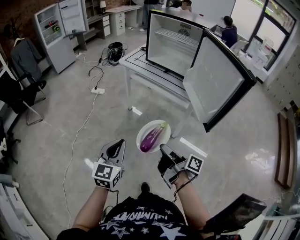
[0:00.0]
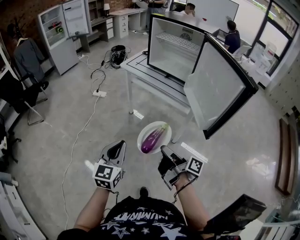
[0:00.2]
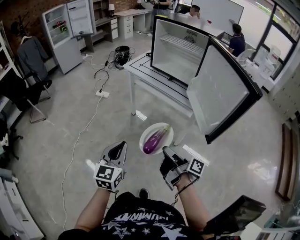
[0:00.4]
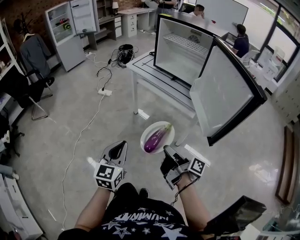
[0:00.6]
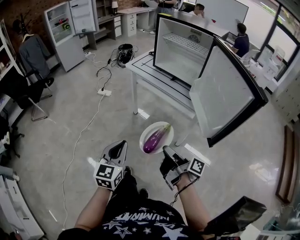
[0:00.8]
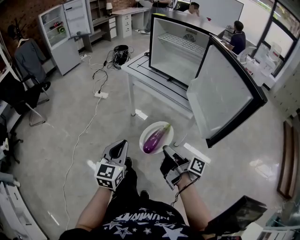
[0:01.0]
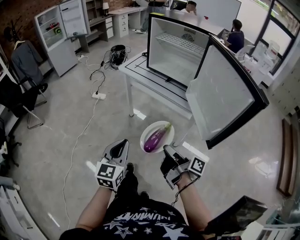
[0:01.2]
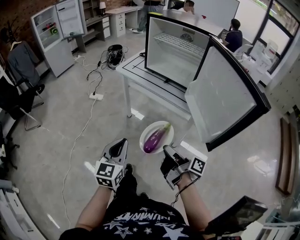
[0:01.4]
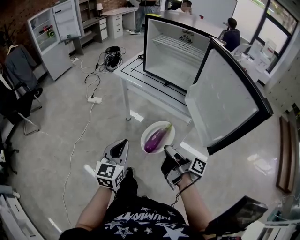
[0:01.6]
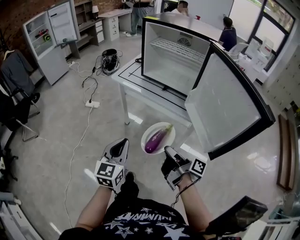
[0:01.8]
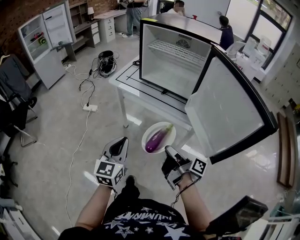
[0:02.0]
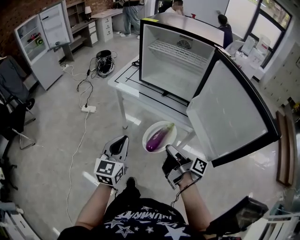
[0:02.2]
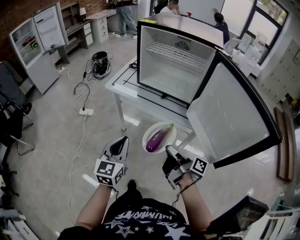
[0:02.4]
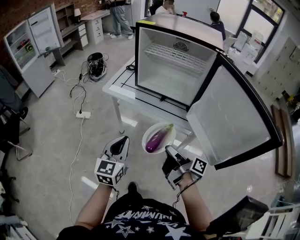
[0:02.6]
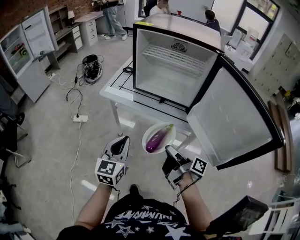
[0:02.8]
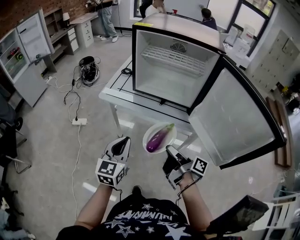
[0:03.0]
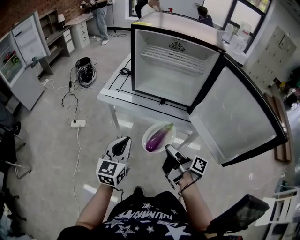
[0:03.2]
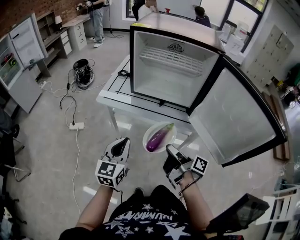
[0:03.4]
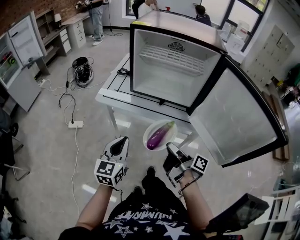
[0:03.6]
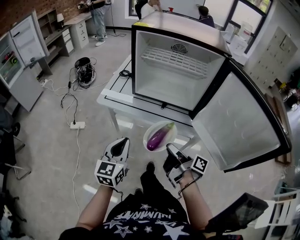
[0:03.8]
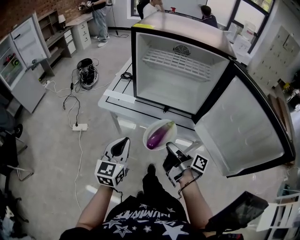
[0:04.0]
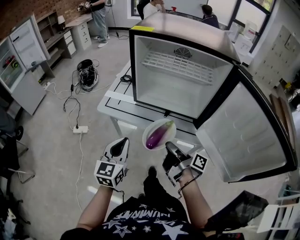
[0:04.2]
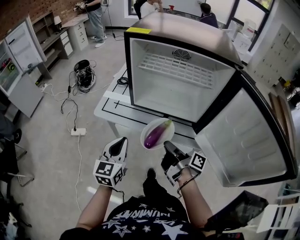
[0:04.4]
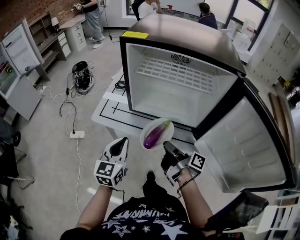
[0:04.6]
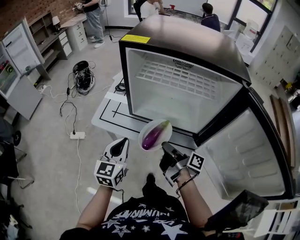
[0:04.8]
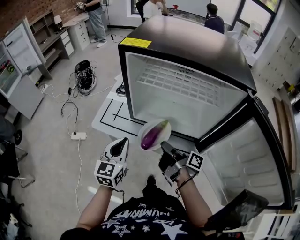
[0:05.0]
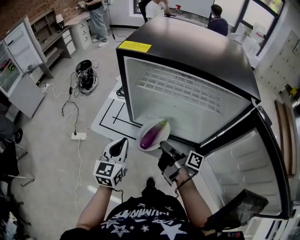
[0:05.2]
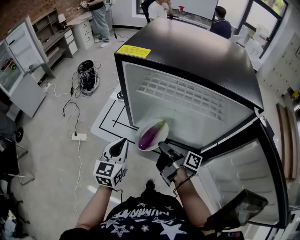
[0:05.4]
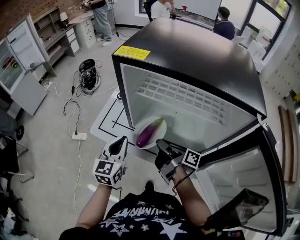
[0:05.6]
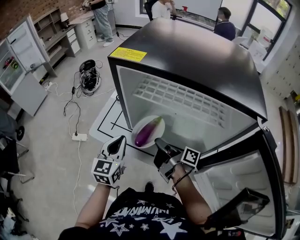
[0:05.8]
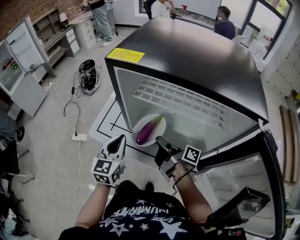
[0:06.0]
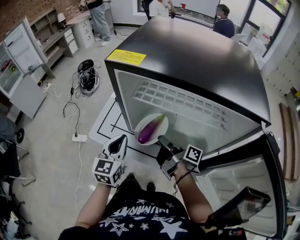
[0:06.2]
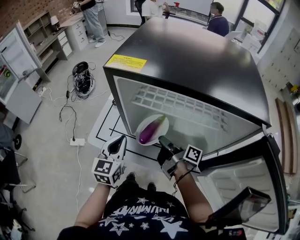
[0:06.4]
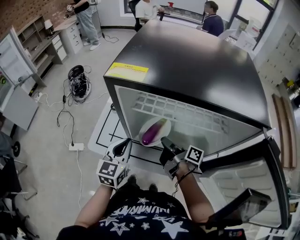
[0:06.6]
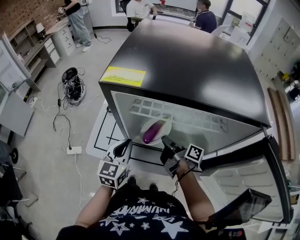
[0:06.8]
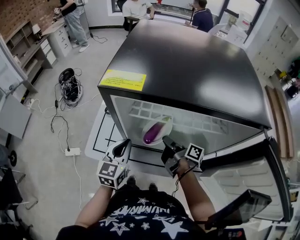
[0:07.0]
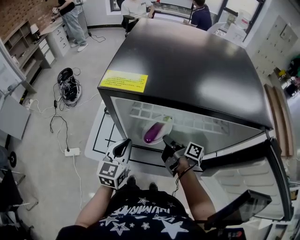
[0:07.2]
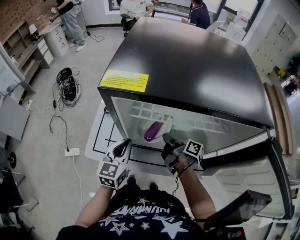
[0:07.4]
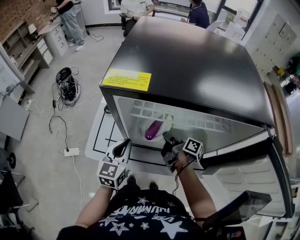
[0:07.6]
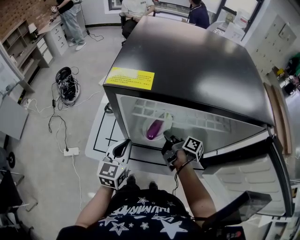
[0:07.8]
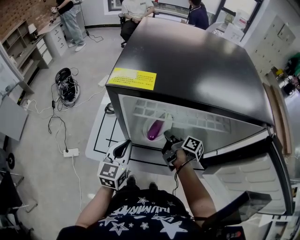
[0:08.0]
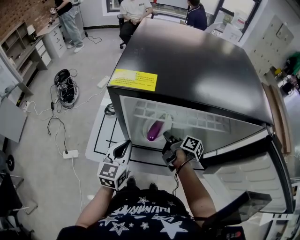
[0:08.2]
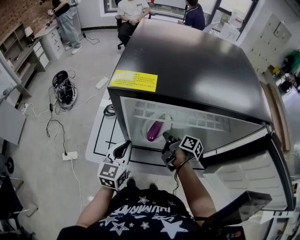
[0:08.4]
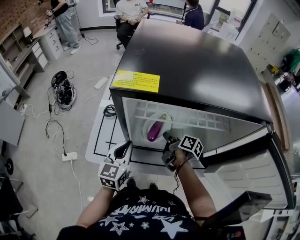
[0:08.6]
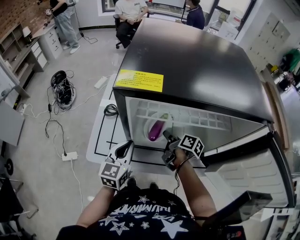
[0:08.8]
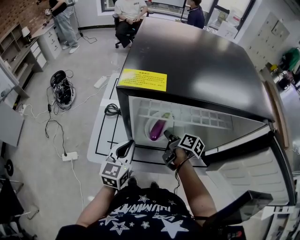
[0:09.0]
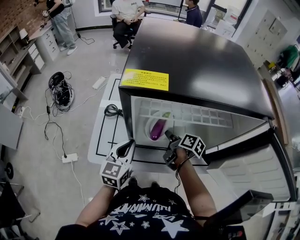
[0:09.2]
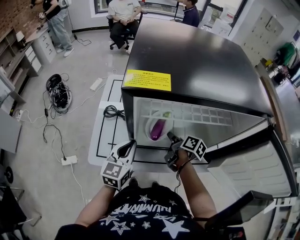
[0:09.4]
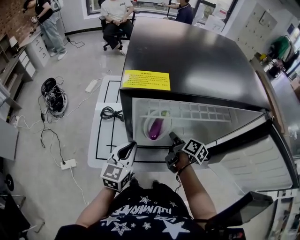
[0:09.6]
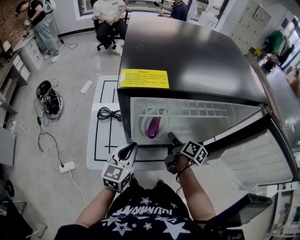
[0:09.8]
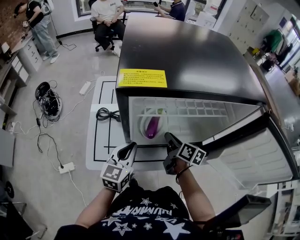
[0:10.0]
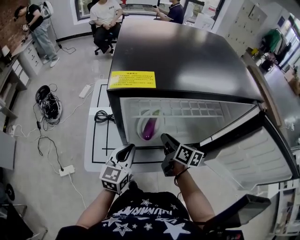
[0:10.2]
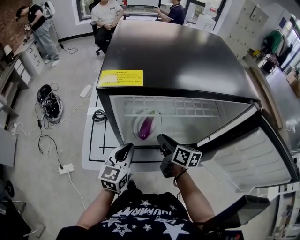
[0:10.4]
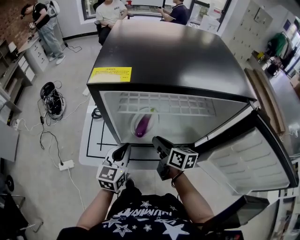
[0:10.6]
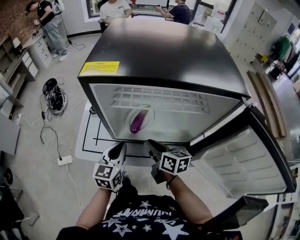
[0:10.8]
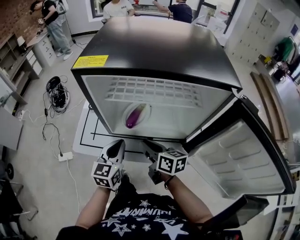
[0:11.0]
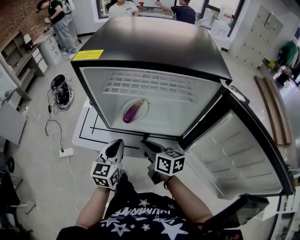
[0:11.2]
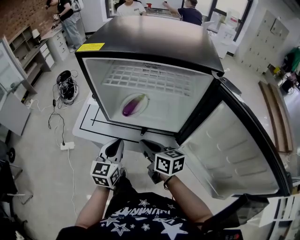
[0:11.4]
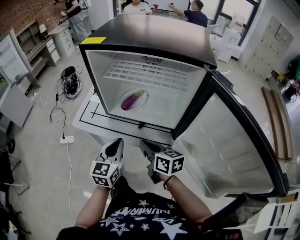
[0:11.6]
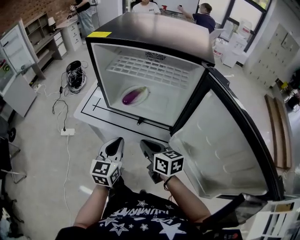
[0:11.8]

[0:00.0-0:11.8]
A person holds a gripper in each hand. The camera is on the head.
0.0 to 1.4 s: The left gripper ends up some 10 cm from where it was.
1.4 to 3.0 s: The left gripper shifts by some 25 cm.
3.0 to 4.4 s: The left gripper shifts by roughly 15 cm.
4.4 to 6.0 s: The left gripper shifts by approximately 20 cm.
6.0 to 7.4 s: The left gripper moves approximately 5 cm.
10.4 to 11.8 s: The left gripper shifts by roughly 20 cm, and turns by roughly 30 degrees.

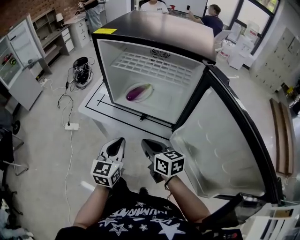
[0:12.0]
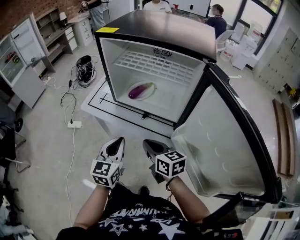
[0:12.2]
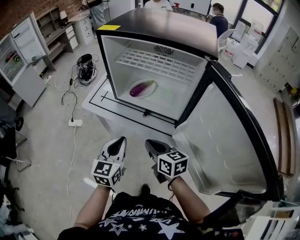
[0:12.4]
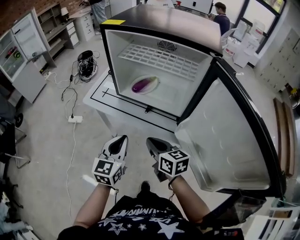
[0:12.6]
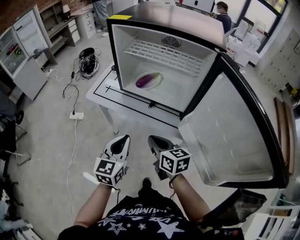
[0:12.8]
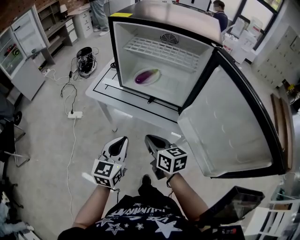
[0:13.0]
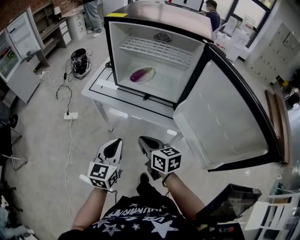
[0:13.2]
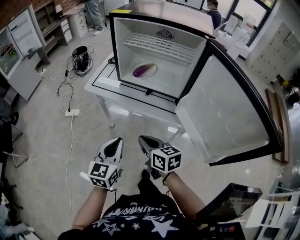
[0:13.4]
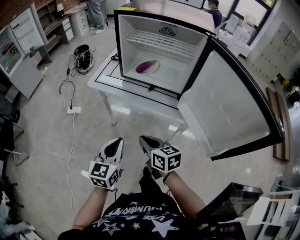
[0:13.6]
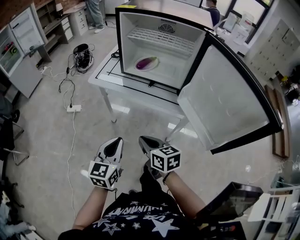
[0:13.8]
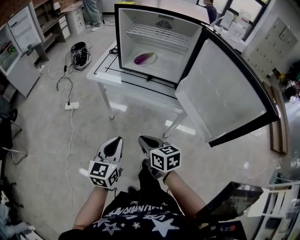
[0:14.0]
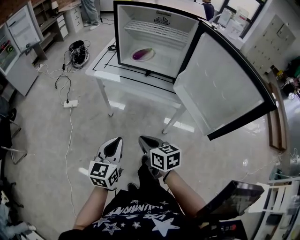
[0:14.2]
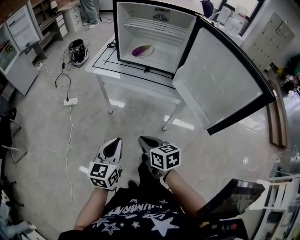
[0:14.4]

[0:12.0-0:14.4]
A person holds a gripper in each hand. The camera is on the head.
12.0 to 13.2 s: The left gripper changes place by approximately 15 cm.
13.2 to 14.4 s: The left gripper shifts by approximately 20 cm.

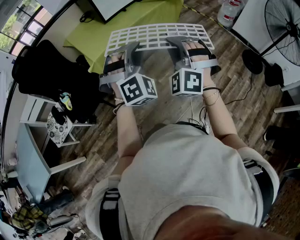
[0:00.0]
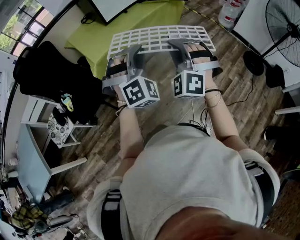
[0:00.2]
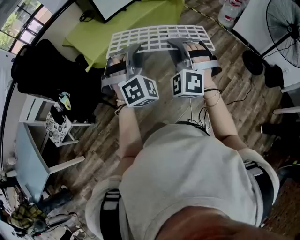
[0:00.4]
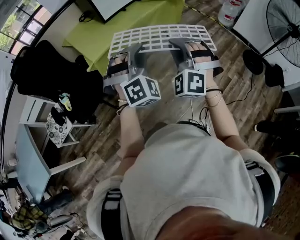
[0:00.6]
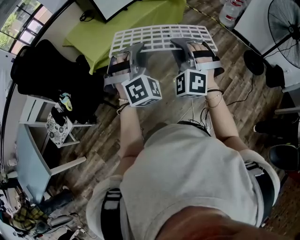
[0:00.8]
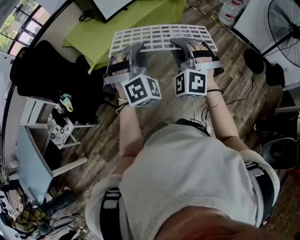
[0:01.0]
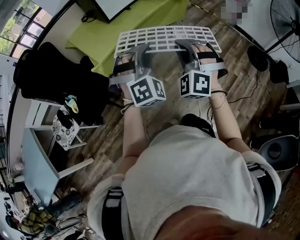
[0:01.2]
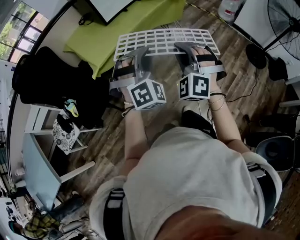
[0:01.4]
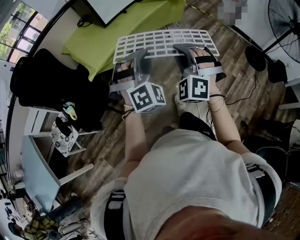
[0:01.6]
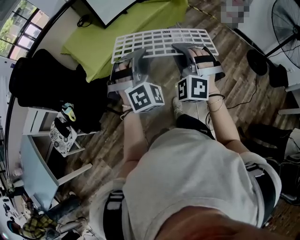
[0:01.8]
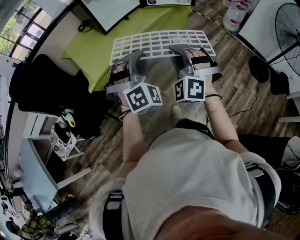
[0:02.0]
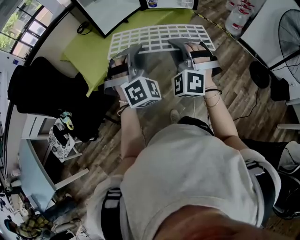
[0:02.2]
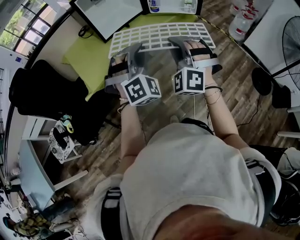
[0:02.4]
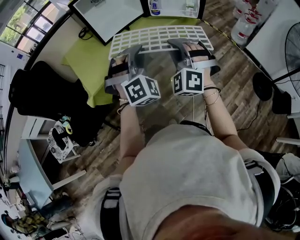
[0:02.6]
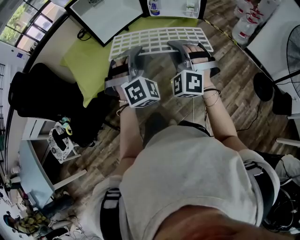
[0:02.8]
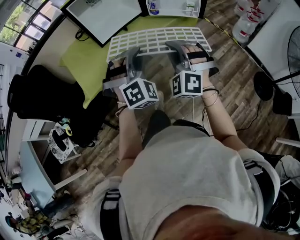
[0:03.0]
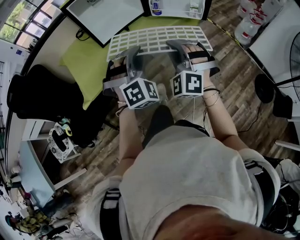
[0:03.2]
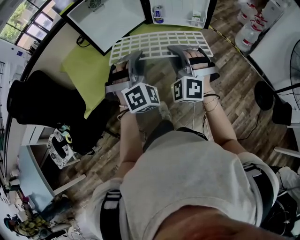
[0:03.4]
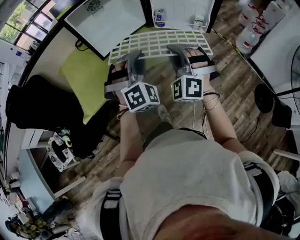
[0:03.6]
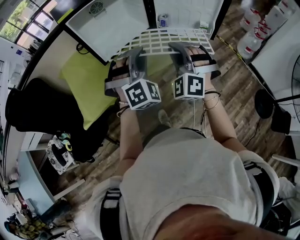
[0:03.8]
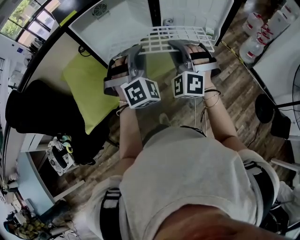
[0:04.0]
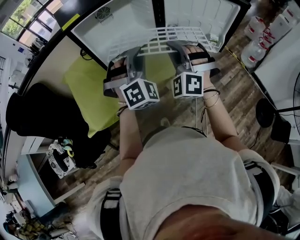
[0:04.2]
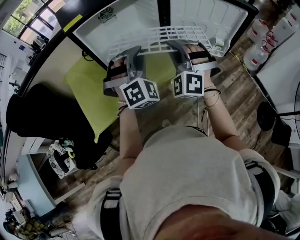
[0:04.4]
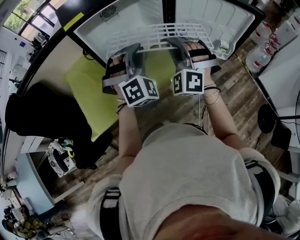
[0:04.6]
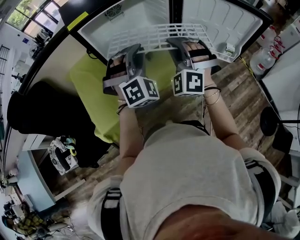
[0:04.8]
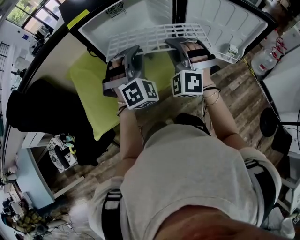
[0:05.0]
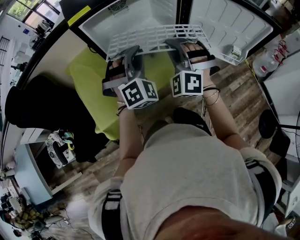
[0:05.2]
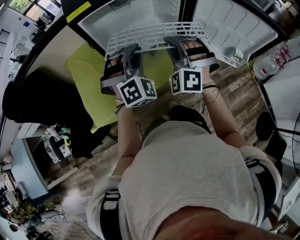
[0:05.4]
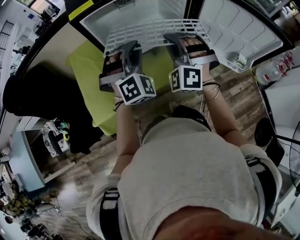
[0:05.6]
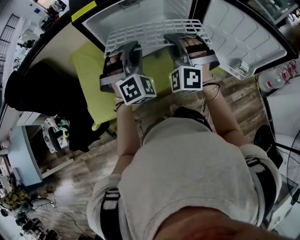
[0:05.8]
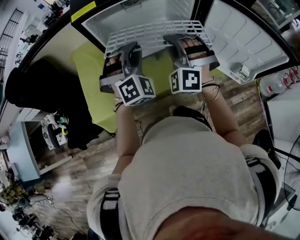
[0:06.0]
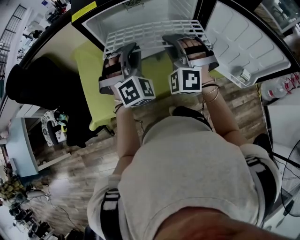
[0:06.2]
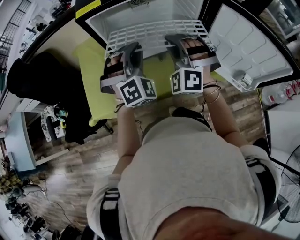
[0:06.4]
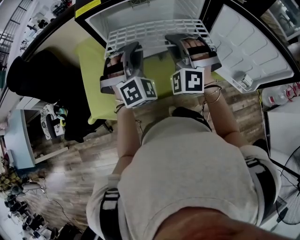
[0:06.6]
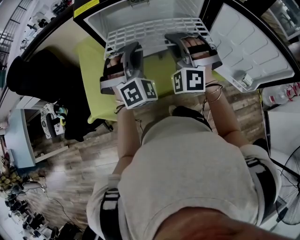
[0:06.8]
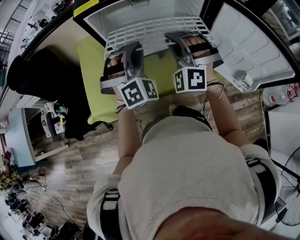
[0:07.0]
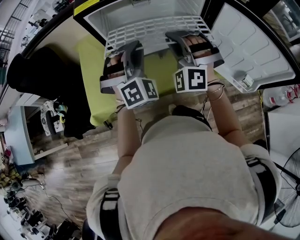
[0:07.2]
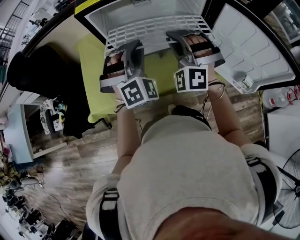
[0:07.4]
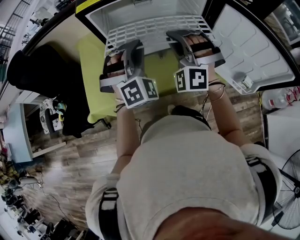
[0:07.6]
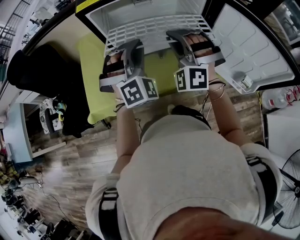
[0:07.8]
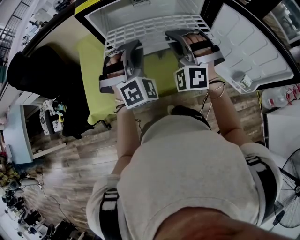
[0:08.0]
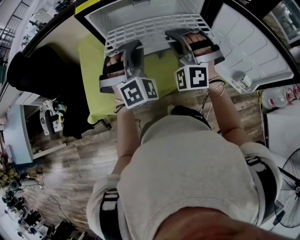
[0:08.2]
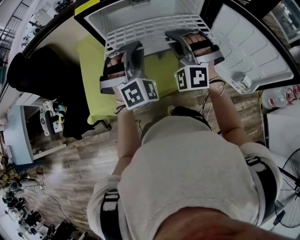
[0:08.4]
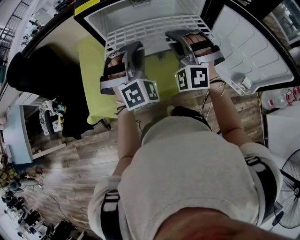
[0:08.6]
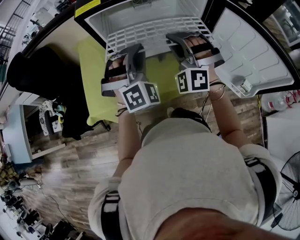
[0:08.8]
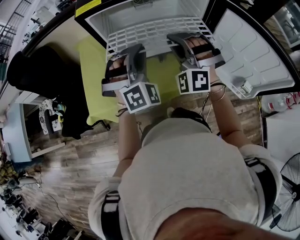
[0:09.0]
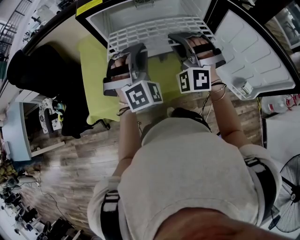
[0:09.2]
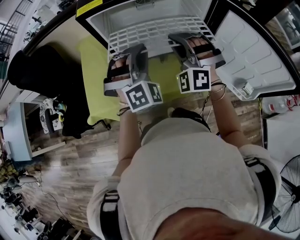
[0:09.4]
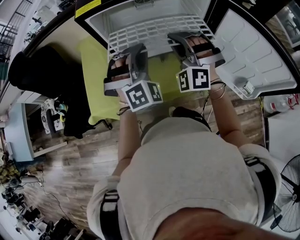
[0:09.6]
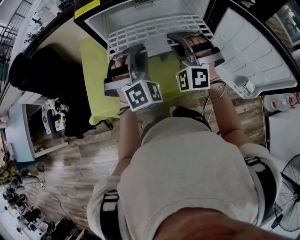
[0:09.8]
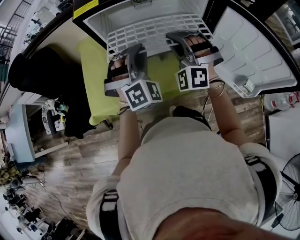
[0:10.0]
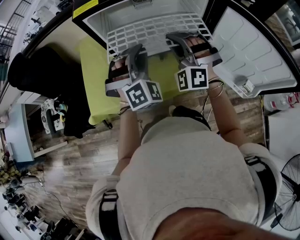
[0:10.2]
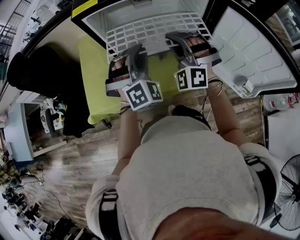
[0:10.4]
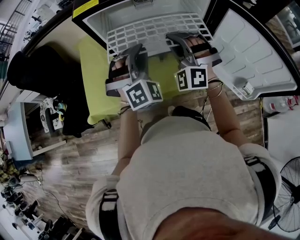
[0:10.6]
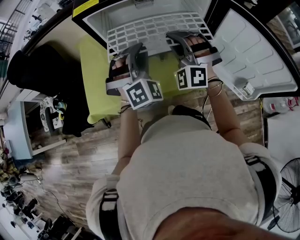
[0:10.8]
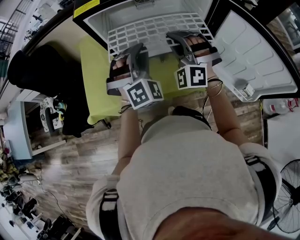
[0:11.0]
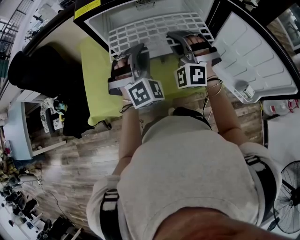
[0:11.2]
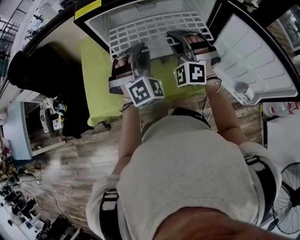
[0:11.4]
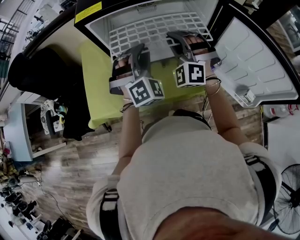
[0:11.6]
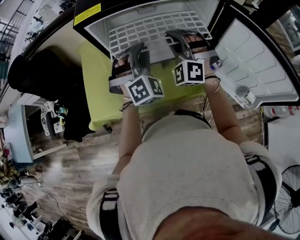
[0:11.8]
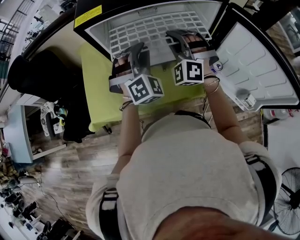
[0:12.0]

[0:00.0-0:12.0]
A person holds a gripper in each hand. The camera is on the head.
0.0 to 1.6 s: Both grippers travel together forward, roughly 5 cm.
1.6 to 3.0 s: Both grippers move forward, approximately 25 cm.
3.0 to 4.4 s: The two grippers go roughly 25 cm forward.
4.4 to 6.0 s: Both grippers move forward and to the left, approximately 15 cm.
6.0 to 7.6 s: The grippers move only a little.
7.6 to 9.0 s: The two grippers keep their place.
9.0 to 10.4 s: The grippers move only a little.
10.4 to 12.0 s: Both grippers move forward, approximately 5 cm.
